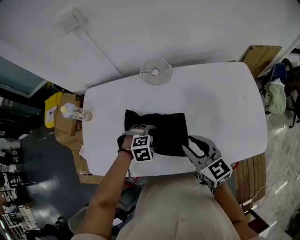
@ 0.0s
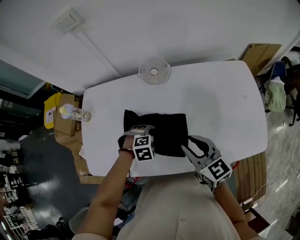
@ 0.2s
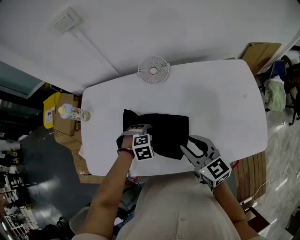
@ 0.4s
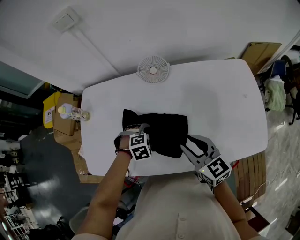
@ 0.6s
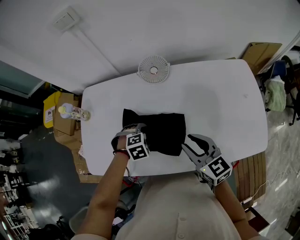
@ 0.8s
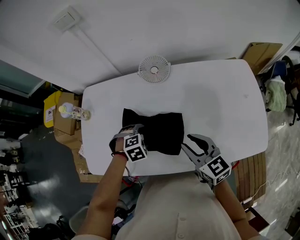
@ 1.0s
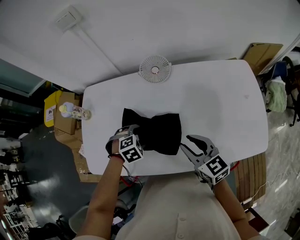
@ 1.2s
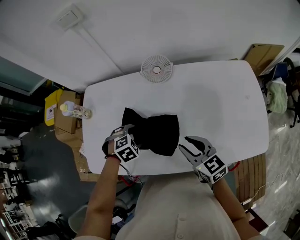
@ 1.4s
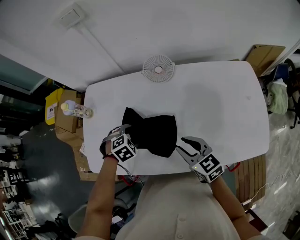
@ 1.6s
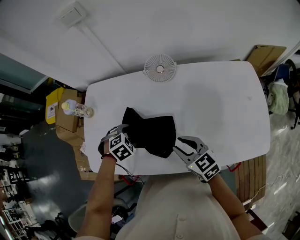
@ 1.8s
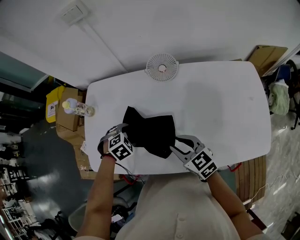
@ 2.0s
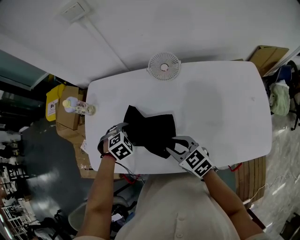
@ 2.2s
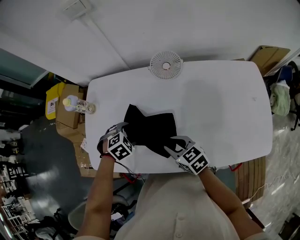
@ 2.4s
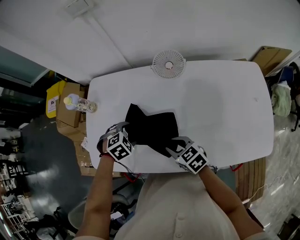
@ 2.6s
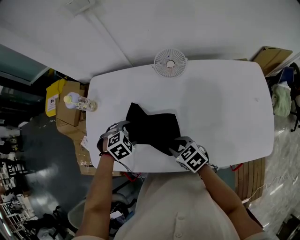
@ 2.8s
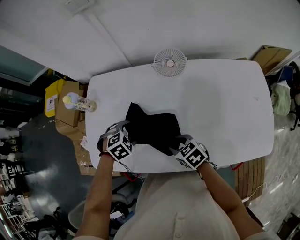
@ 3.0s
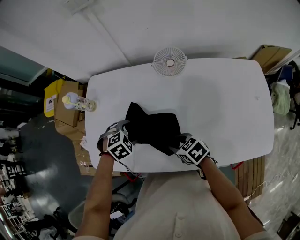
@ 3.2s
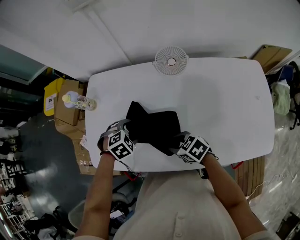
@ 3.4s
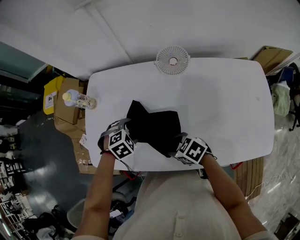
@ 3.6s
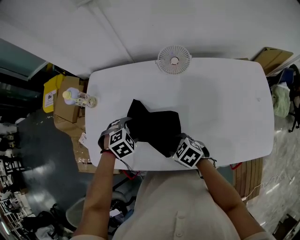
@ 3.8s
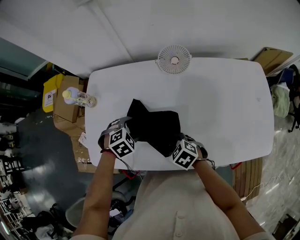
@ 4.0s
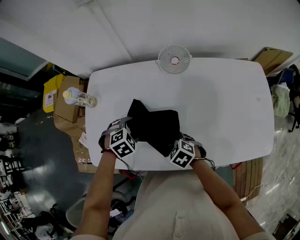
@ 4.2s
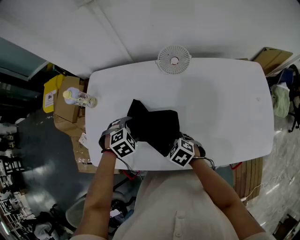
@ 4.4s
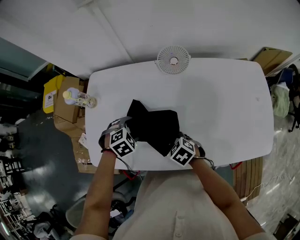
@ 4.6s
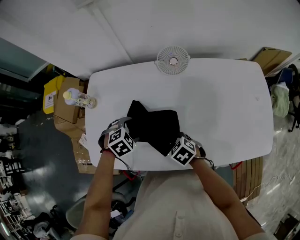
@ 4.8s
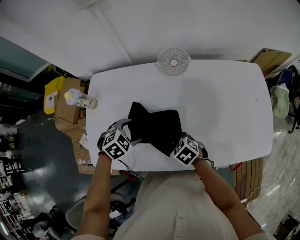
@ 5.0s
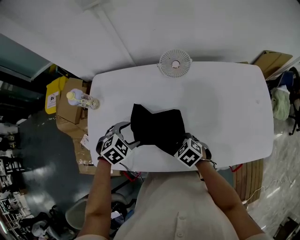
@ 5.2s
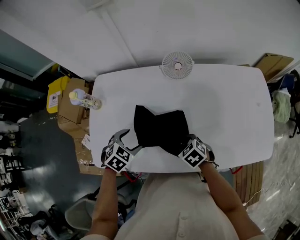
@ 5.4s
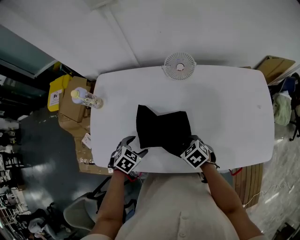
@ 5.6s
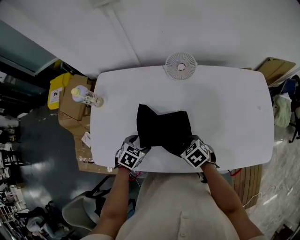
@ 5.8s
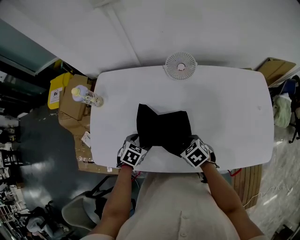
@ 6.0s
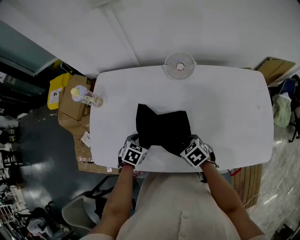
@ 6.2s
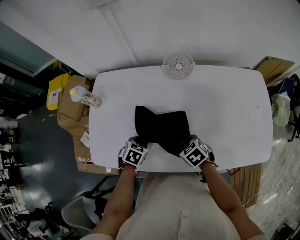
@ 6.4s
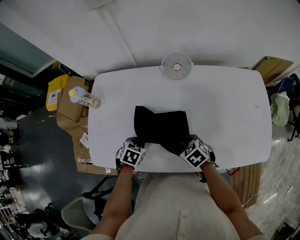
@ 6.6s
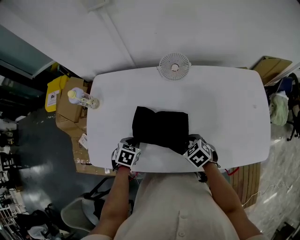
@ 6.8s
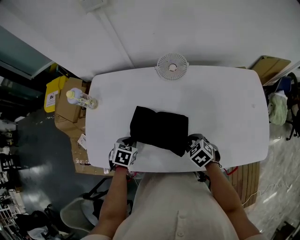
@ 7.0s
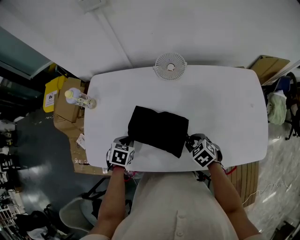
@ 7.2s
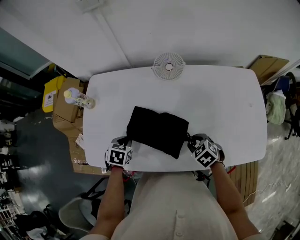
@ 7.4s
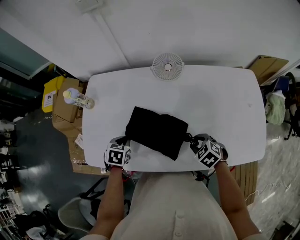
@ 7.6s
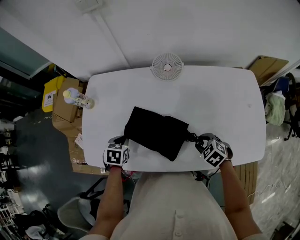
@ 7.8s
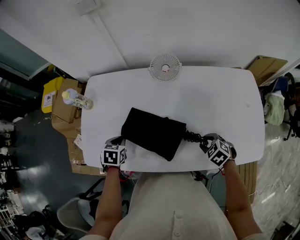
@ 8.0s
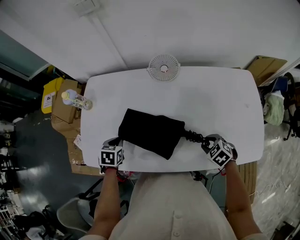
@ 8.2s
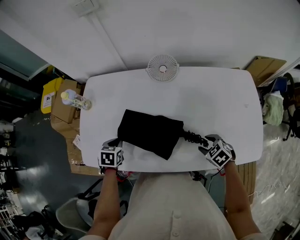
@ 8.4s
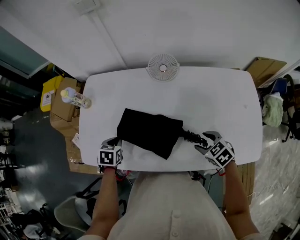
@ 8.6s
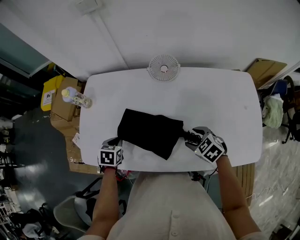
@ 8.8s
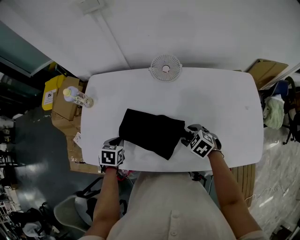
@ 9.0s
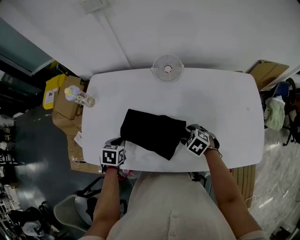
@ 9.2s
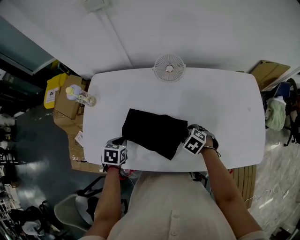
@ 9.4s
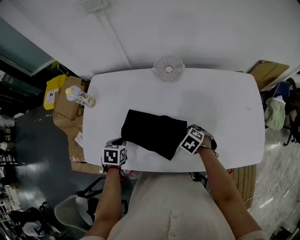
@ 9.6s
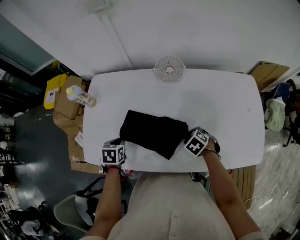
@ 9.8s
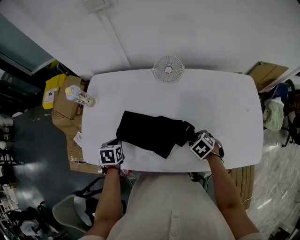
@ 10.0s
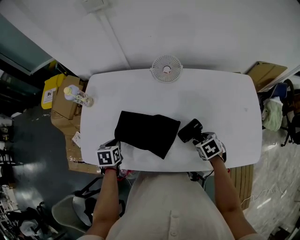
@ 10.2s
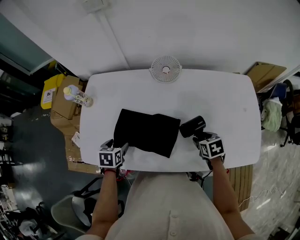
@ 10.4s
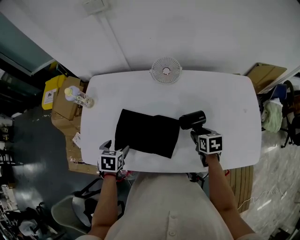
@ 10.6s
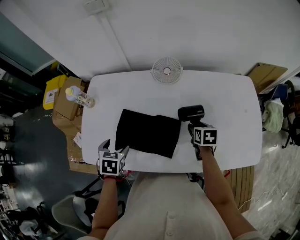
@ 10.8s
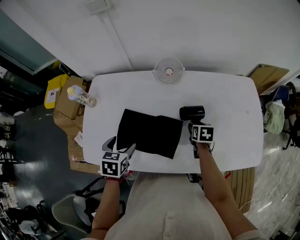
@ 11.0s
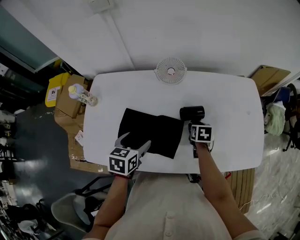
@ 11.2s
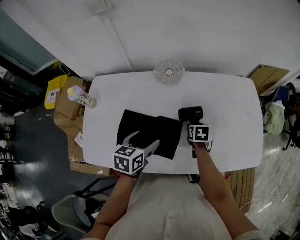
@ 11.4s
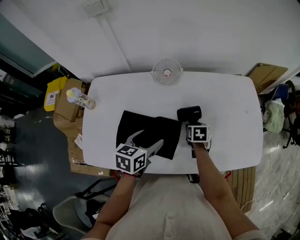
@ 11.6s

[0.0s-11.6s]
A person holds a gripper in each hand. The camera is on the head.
0.0s to 1.4s: The left gripper ends up about 10 cm from where it was, and swivels about 20 degrees.
1.4s to 2.8s: The right gripper moves downward, some 10 cm, and rotates roughly 30 degrees, while the left gripper shifts by approximately 5 cm.
2.8s to 4.4s: The right gripper swivels roughly 20 degrees, and opens its fingers.
4.4s to 5.8s: The left gripper heads backward, covering approximately 5 cm, and rotates about 40 degrees. The right gripper goes approximately 5 cm to the right, and closes.
5.8s to 7.2s: The left gripper closes its fingers, while the right gripper travels to the right by about 5 cm.
7.2s to 8.8s: The right gripper opens.
8.8s to 10.2s: The right gripper moves approximately 5 cm, and changes its angle by roughly 30 degrees.
10.2s to 11.6s: The right gripper changes place by roughly 10 cm, and swivels approximately 30 degrees. Meanwhile the left gripper shifts by roughly 25 cm, rotates roughly 30 degrees, and opens.

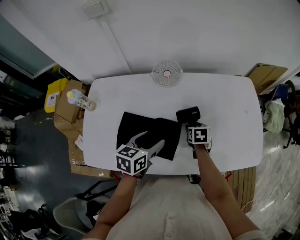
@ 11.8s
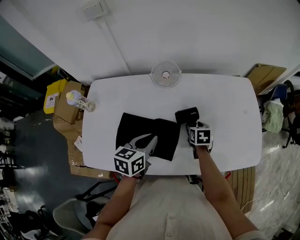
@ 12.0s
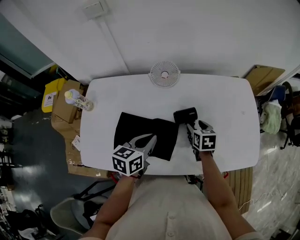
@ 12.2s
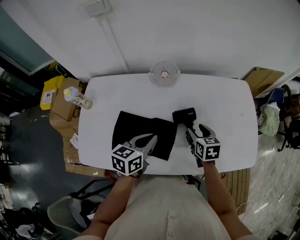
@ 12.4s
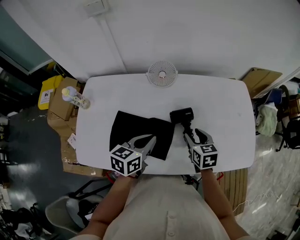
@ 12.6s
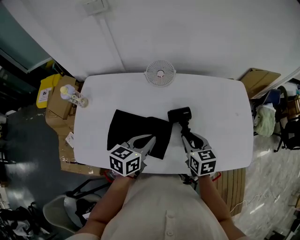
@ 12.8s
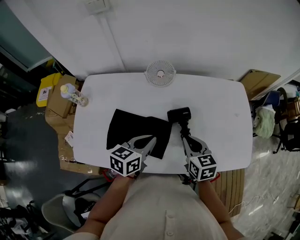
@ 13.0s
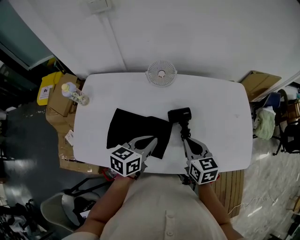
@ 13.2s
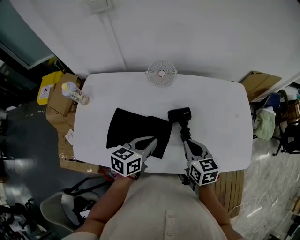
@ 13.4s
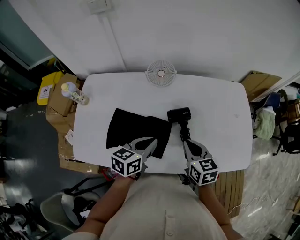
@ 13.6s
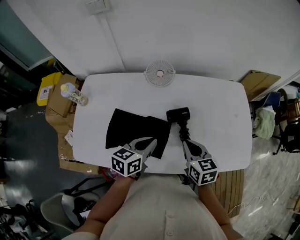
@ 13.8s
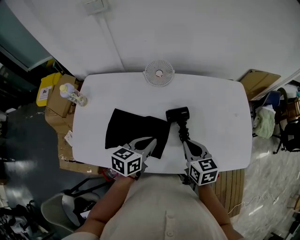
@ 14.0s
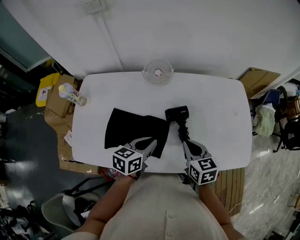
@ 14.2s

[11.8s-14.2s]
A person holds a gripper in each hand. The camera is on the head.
11.8s to 13.0s: The left gripper closes; the right gripper shifts approximately 15 cm upward and backward, rotates some 30 degrees, and closes its fingers.
13.0s to 14.2s: The grippers stay close to where they were, moving slightly.

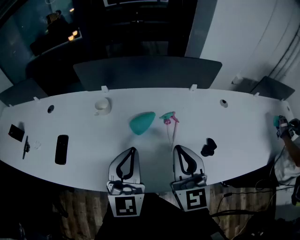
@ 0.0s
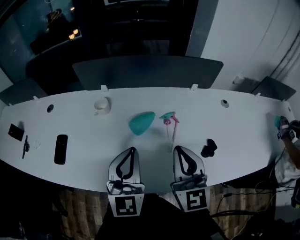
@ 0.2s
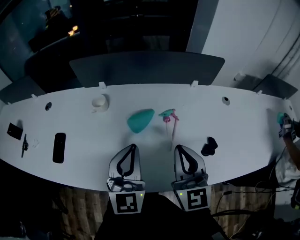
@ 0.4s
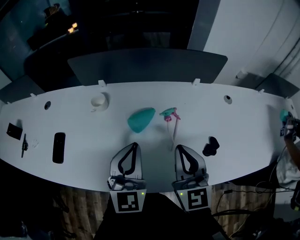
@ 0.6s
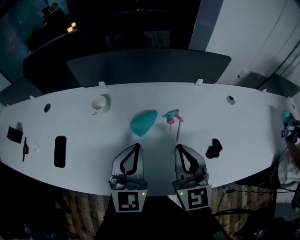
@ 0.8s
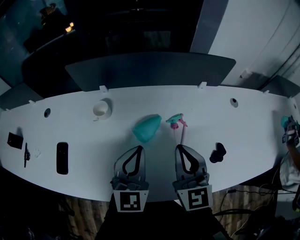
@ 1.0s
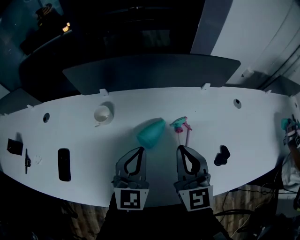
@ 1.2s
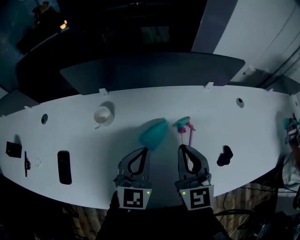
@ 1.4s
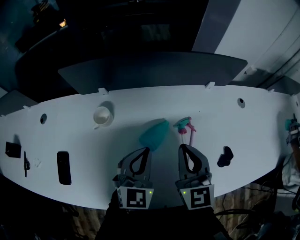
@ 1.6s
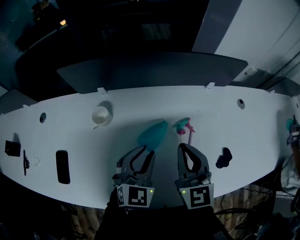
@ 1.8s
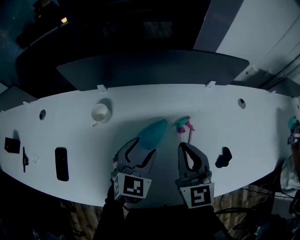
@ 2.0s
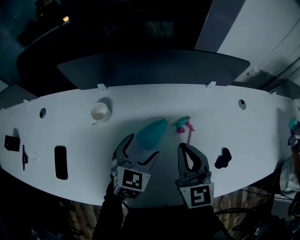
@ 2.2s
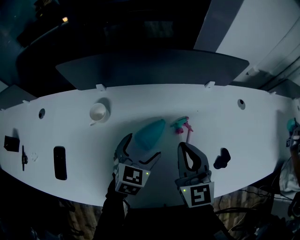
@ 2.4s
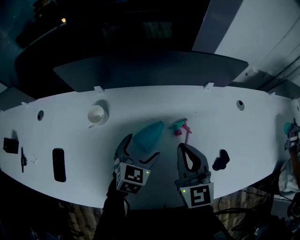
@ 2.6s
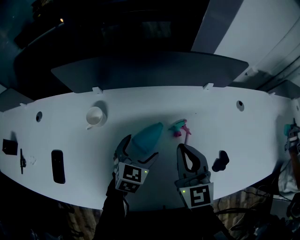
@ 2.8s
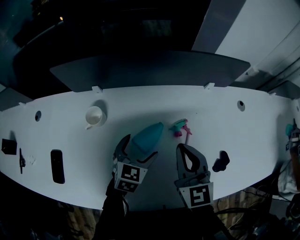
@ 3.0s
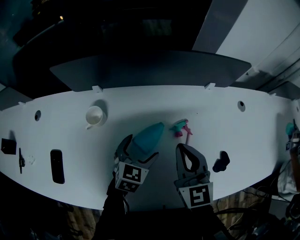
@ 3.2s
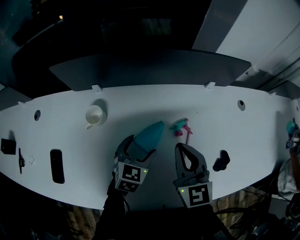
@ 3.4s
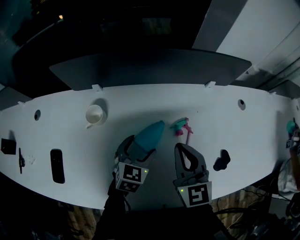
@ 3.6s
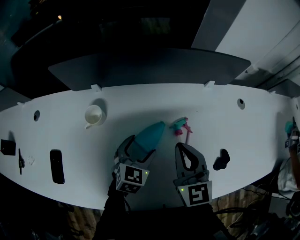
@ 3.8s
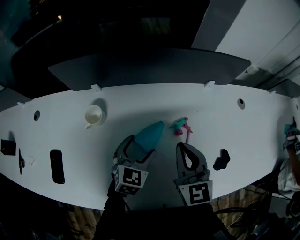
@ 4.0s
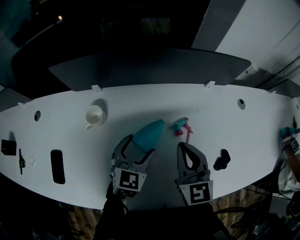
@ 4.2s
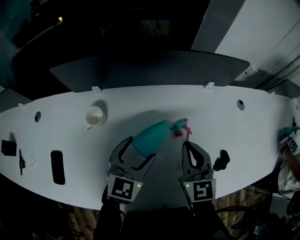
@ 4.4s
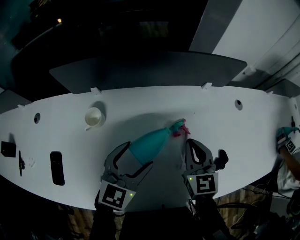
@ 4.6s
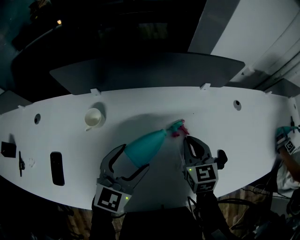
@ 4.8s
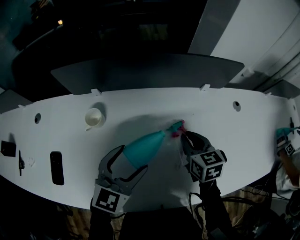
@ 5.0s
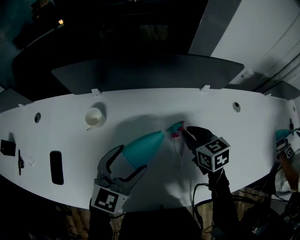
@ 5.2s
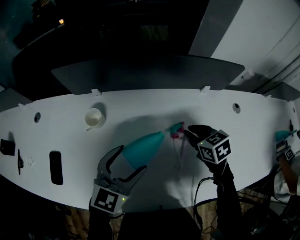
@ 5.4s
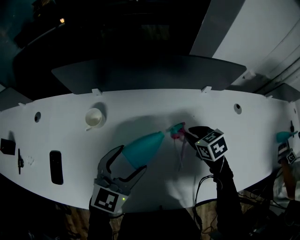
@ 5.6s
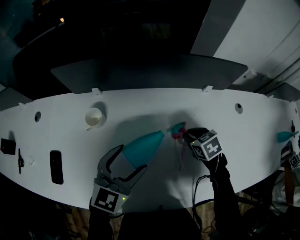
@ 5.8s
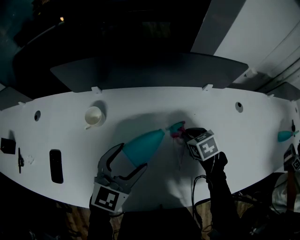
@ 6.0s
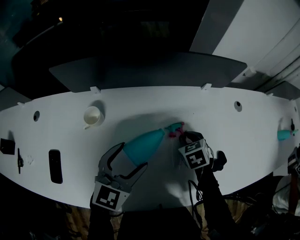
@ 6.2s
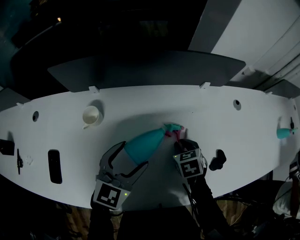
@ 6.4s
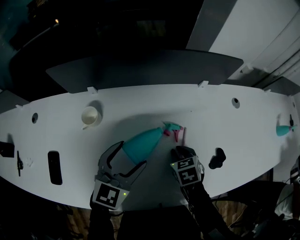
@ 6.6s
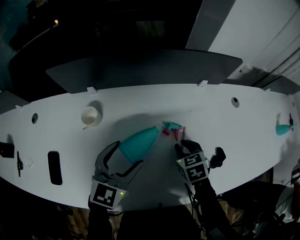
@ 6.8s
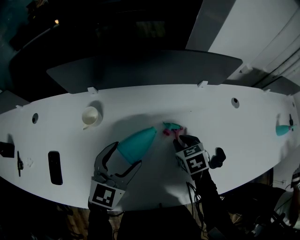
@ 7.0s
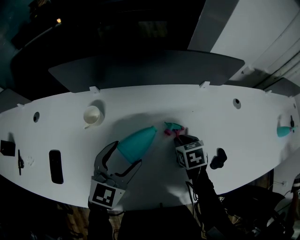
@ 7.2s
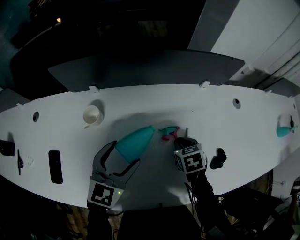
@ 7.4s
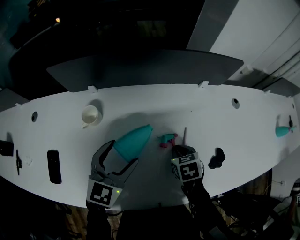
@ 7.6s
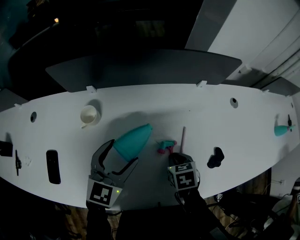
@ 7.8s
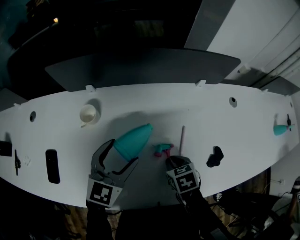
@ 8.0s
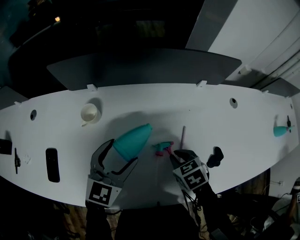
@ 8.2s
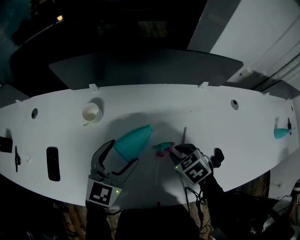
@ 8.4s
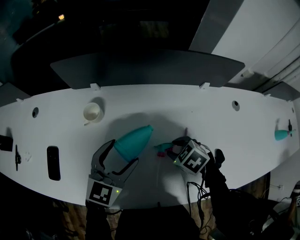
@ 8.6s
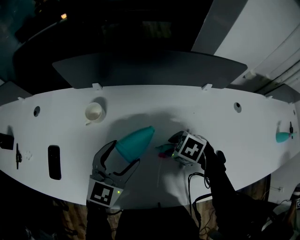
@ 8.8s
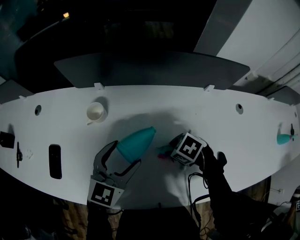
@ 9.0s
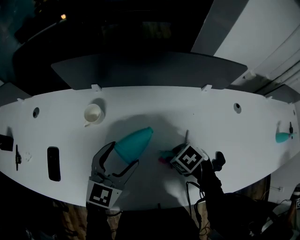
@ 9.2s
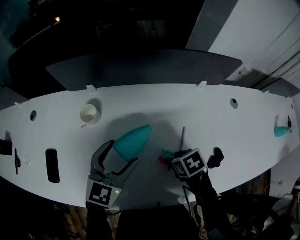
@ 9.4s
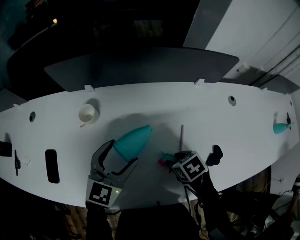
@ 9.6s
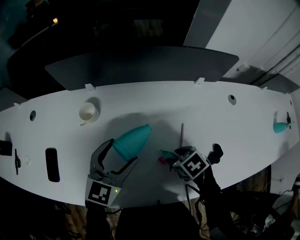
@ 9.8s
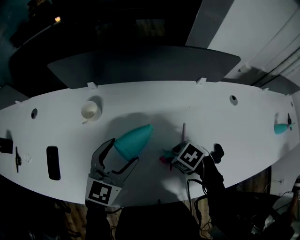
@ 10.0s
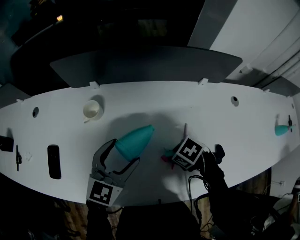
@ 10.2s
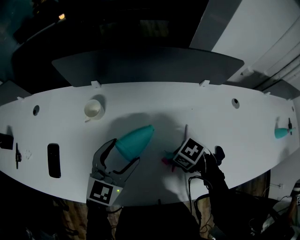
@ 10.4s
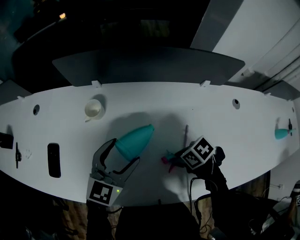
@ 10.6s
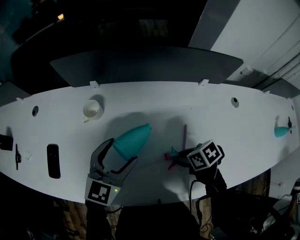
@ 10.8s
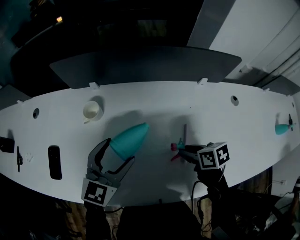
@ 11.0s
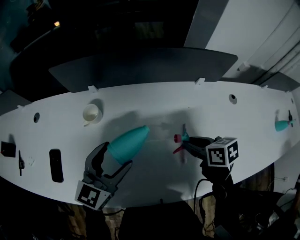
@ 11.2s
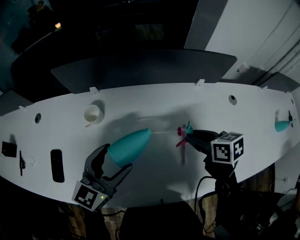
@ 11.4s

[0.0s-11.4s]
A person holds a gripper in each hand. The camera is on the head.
0.0s to 1.4s: Both grippers travel together forward and downward, some 15 cm.
1.4s to 2.8s: The left gripper heads downward, covering approximately 10 cm, rotates roughly 20 degrees, and opens its fingers.
2.8s to 4.2s: The grippers stay close to where they were, moving slightly.
4.2s to 5.6s: The right gripper moves downward, forward and to the right, roughly 15 cm, and tilts its fingers approximately 40 degrees downward; the left gripper travels upward by some 10 cm.
7.2s to 8.6s: The right gripper heads backward, covering some 5 cm, and swivels roughly 40 degrees.
10.0s to 11.4s: The right gripper goes approximately 10 cm upward, and changes its angle by some 50 degrees.
